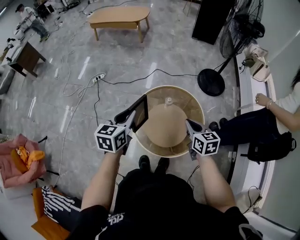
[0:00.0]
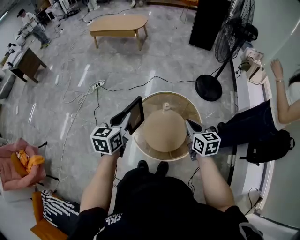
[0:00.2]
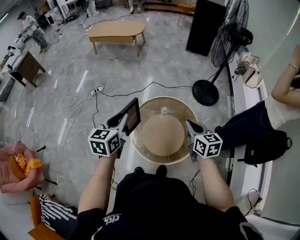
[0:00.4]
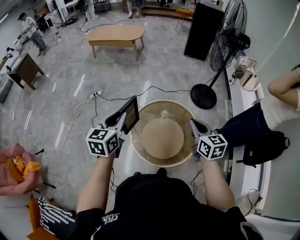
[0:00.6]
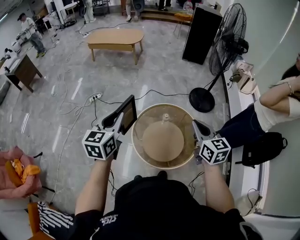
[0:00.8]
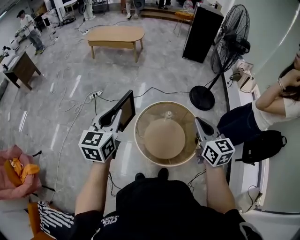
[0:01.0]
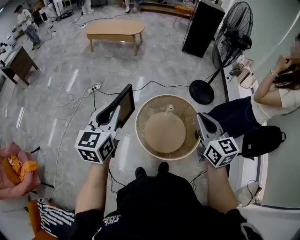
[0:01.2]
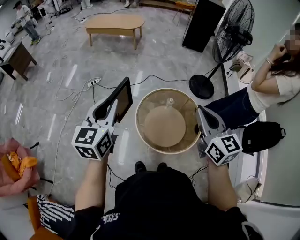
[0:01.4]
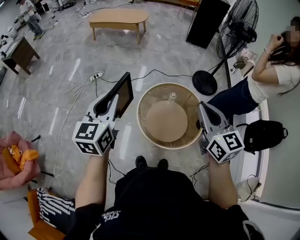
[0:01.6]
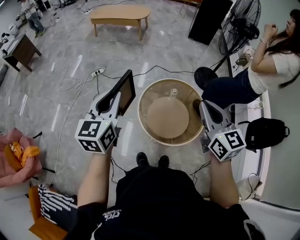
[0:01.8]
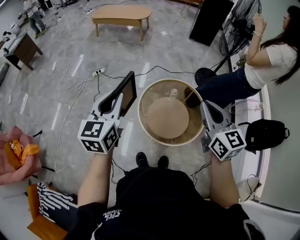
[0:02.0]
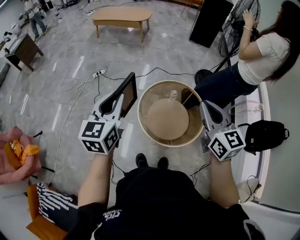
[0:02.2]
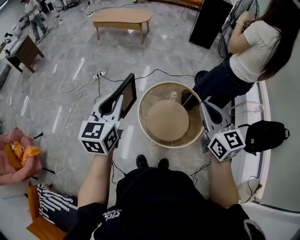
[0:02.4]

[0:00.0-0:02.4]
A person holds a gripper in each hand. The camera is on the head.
0:00.0 to 0:01.2: The grippers both shift upward and to the left by about 20 cm. The right gripper rotates about 20 degrees.
0:01.2 to 0:02.4: The grippers make only small movements.

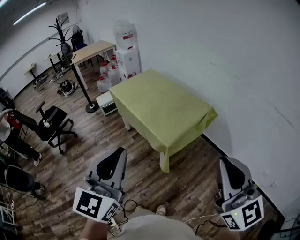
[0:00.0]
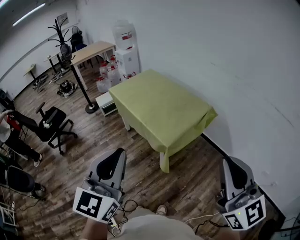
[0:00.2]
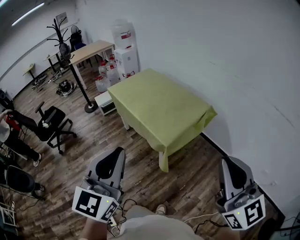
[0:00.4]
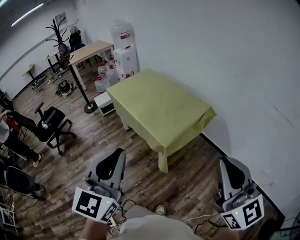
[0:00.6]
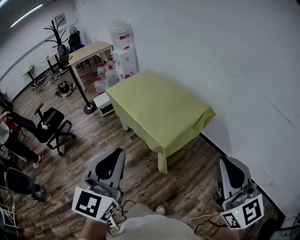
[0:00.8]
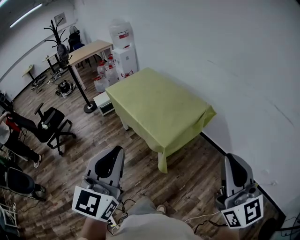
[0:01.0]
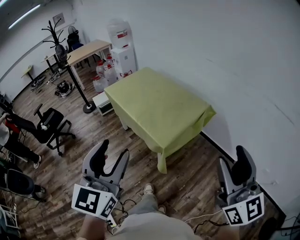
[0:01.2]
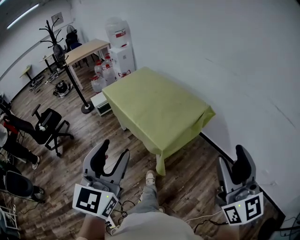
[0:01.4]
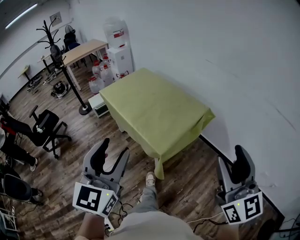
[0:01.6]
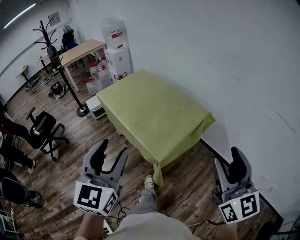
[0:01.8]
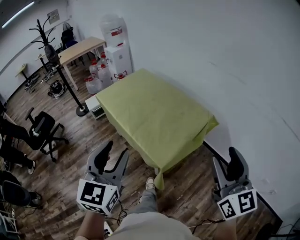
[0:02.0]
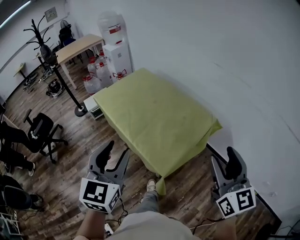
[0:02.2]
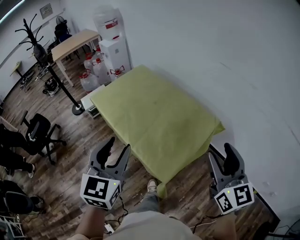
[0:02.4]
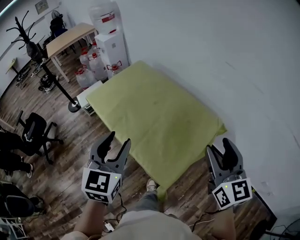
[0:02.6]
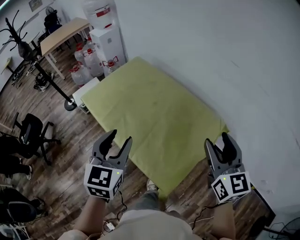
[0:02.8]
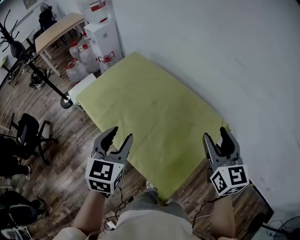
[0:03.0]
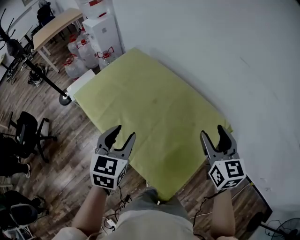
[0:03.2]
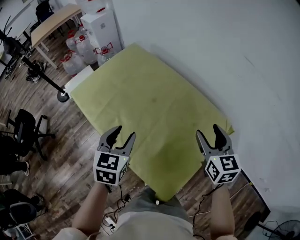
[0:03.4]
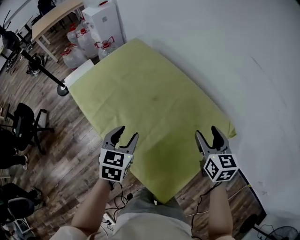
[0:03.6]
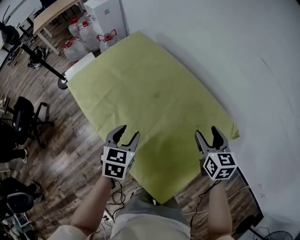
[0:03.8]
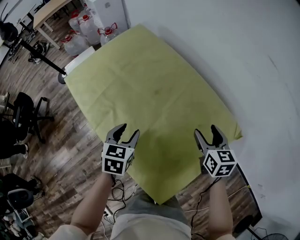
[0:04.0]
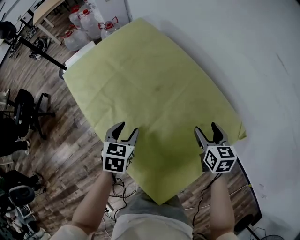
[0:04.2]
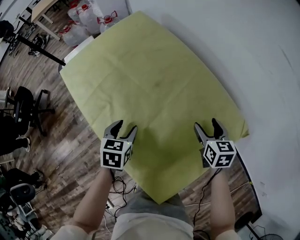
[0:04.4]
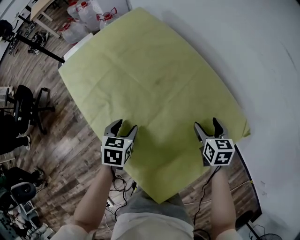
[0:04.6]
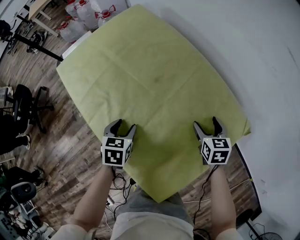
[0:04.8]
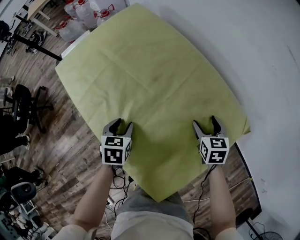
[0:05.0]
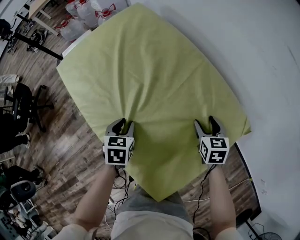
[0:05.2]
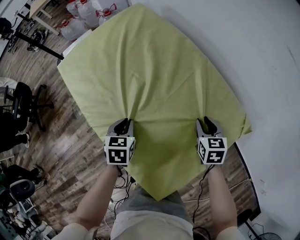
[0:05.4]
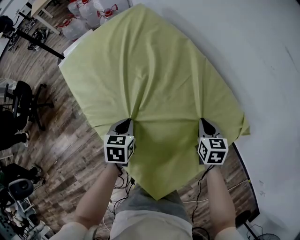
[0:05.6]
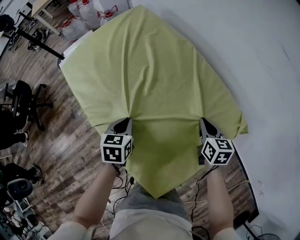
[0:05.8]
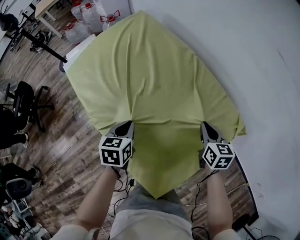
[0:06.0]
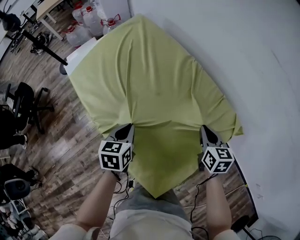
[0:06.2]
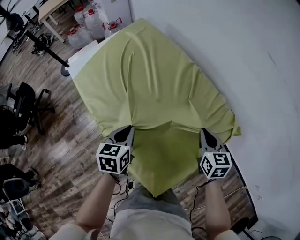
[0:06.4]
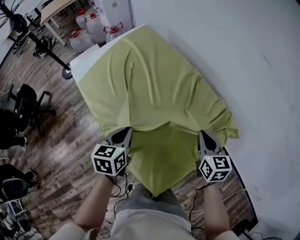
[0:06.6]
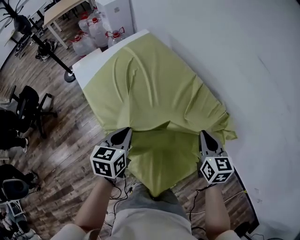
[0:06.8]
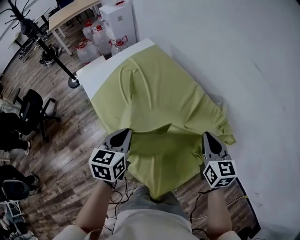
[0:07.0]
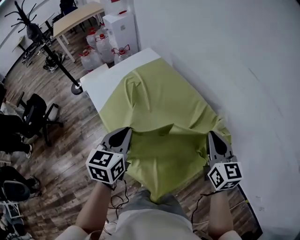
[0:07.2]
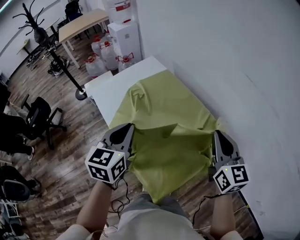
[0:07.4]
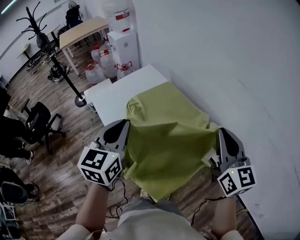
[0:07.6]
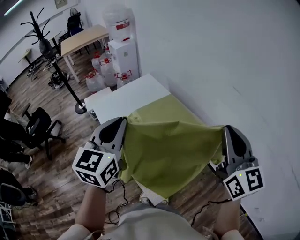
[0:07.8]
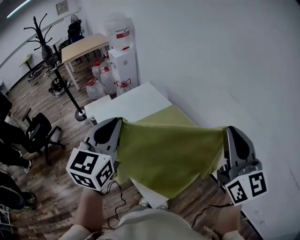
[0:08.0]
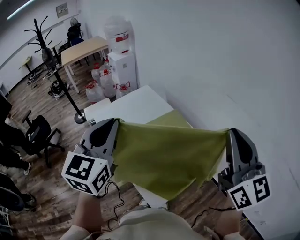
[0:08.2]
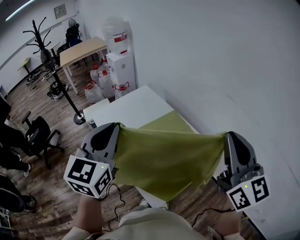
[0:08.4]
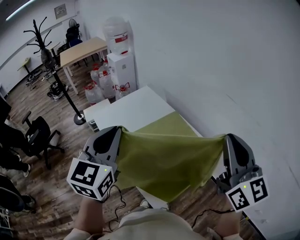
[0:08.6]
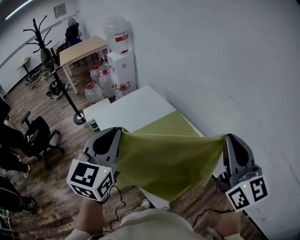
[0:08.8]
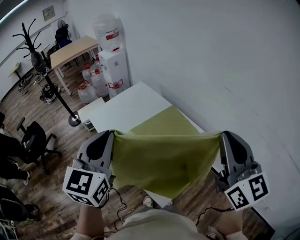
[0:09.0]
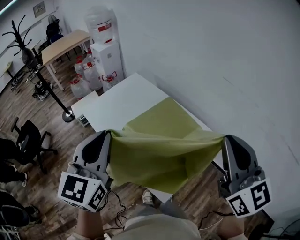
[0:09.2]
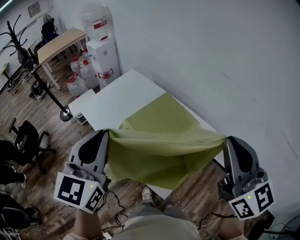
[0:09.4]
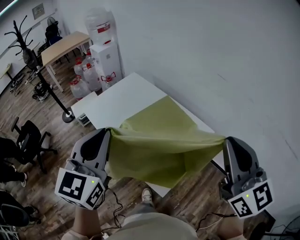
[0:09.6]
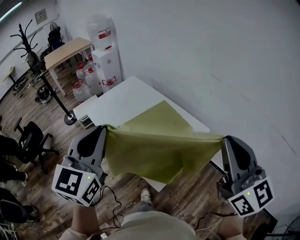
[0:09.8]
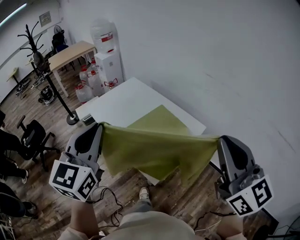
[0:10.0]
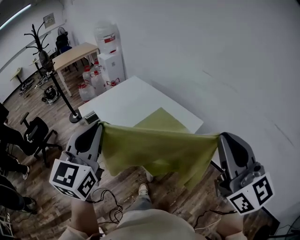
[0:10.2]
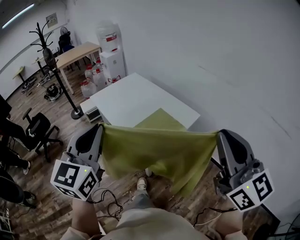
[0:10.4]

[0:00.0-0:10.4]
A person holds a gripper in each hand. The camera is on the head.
0:00.0 to 0:01.4: The left gripper is displaced forward by roughly 5 cm, and opens up, while the right gripper heads to the right and forward, covering about 10 cm, and opens.
0:01.4 to 0:03.0: Both grippers are carried forward, about 50 cm. The right gripper turns by approximately 20 degrees. The left gripper turns by approximately 30 degrees.
0:03.0 to 0:04.4: The right gripper goes roughly 35 cm downward and forward, and changes its angle by about 30 degrees, while the left gripper goes approximately 30 cm downward, and swivels approximately 30 degrees.
0:04.4 to 0:06.0: The right gripper closes up; the left gripper closes.
0:06.0 to 0:07.4: Both grippers move upward, some 30 cm. The left gripper changes its angle by about 30 degrees. The right gripper swivels approximately 30 degrees.
0:07.4 to 0:09.0: The two grippers go some 20 cm upward and backward.
0:09.0 to 0:10.4: Both grippers move backward, about 35 cm.

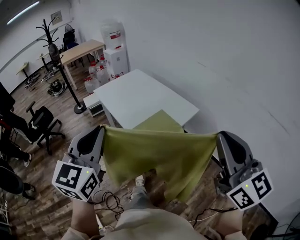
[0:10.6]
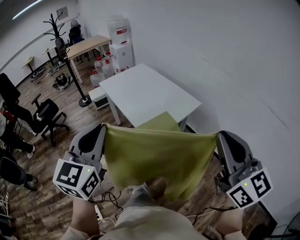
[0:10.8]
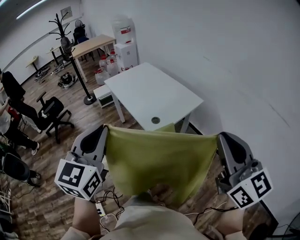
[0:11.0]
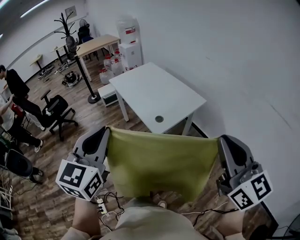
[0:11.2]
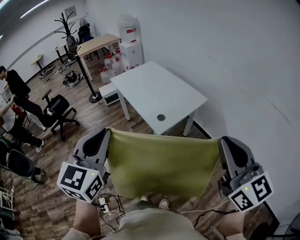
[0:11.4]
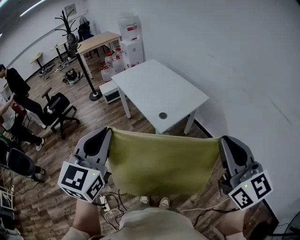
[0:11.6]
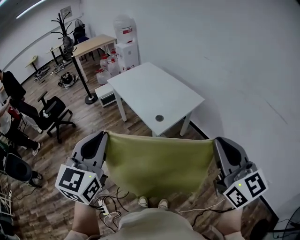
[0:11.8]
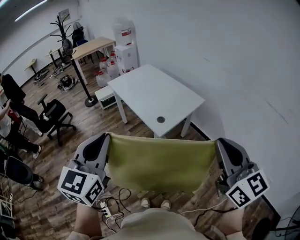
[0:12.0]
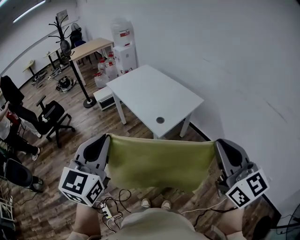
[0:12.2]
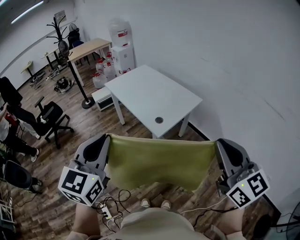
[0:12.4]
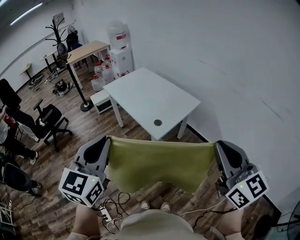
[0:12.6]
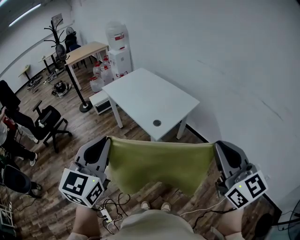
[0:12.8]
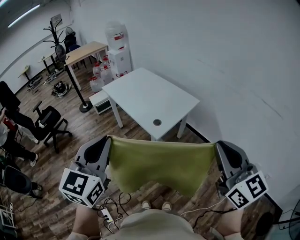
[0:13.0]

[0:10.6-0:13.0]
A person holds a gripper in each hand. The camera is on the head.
0:10.6 to 0:11.8: The two grippers go roughly 15 cm backward and to the left.
0:11.8 to 0:13.0: The grippers stay close to where they were, moving slightly.

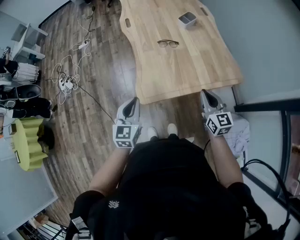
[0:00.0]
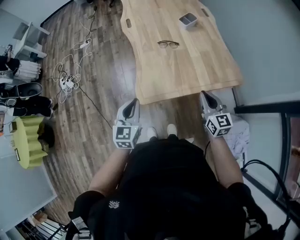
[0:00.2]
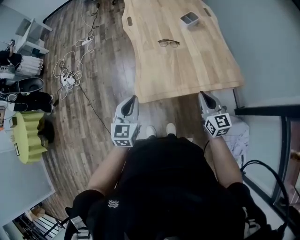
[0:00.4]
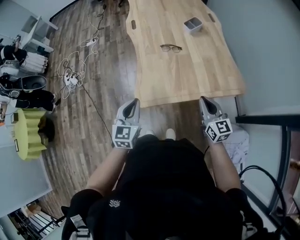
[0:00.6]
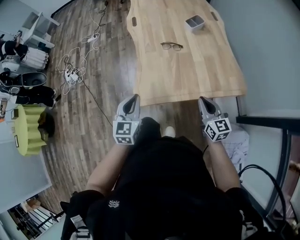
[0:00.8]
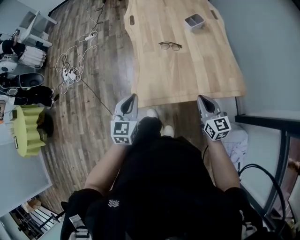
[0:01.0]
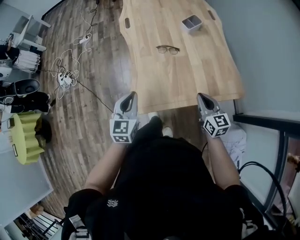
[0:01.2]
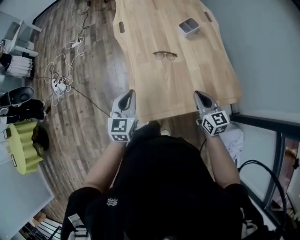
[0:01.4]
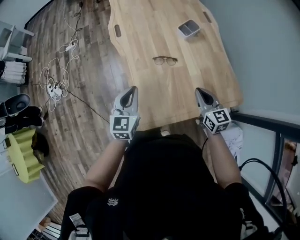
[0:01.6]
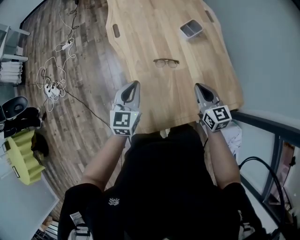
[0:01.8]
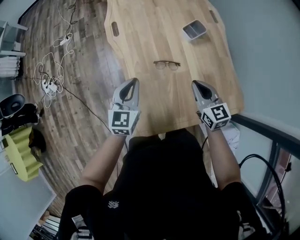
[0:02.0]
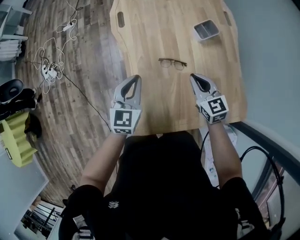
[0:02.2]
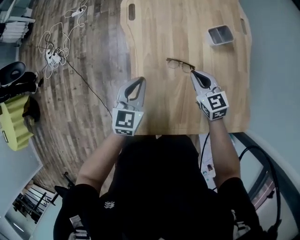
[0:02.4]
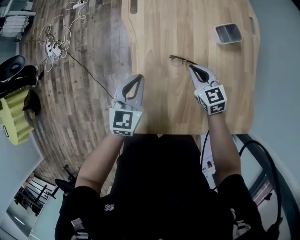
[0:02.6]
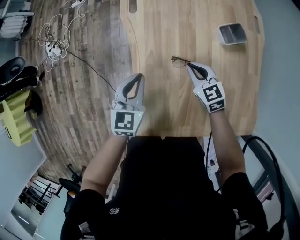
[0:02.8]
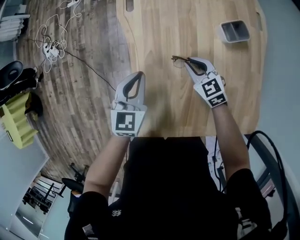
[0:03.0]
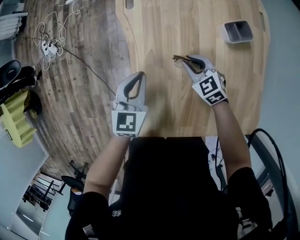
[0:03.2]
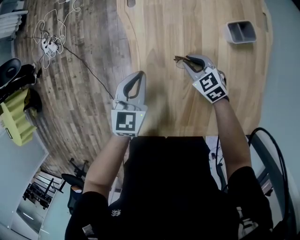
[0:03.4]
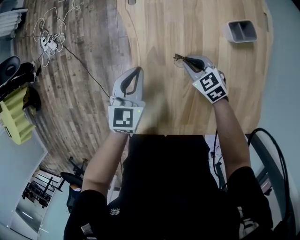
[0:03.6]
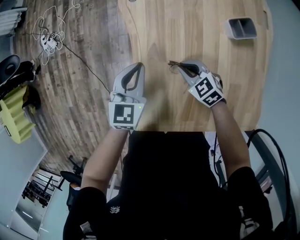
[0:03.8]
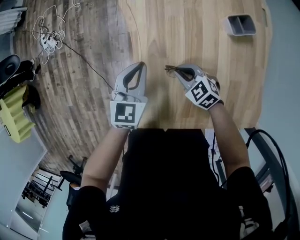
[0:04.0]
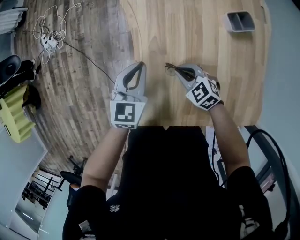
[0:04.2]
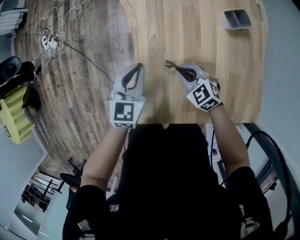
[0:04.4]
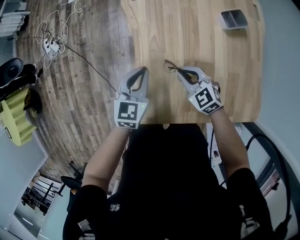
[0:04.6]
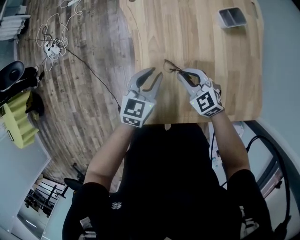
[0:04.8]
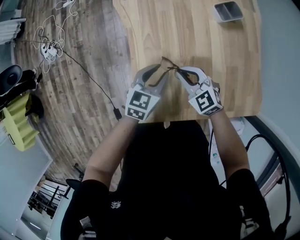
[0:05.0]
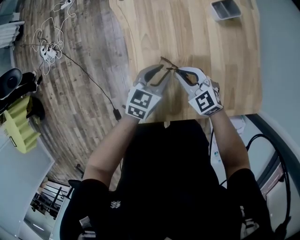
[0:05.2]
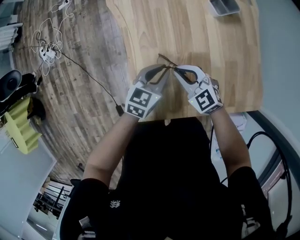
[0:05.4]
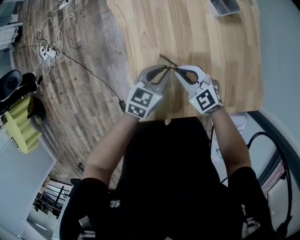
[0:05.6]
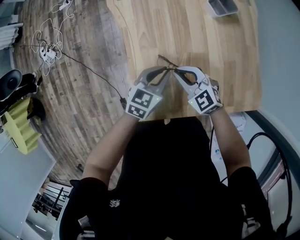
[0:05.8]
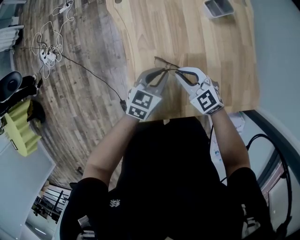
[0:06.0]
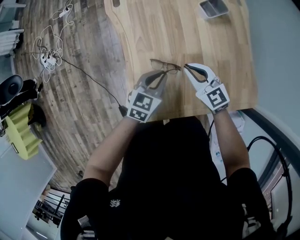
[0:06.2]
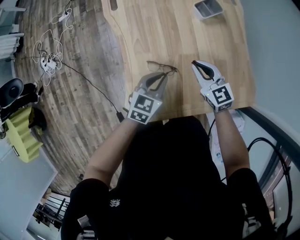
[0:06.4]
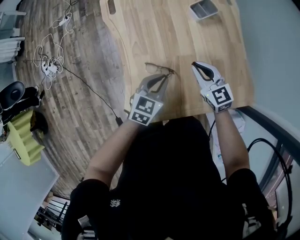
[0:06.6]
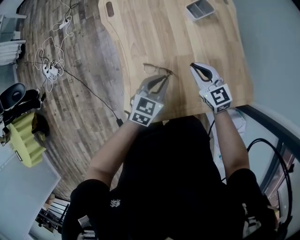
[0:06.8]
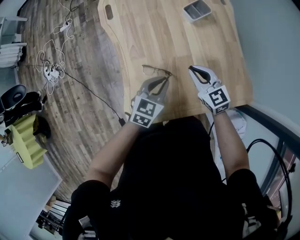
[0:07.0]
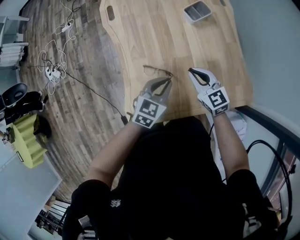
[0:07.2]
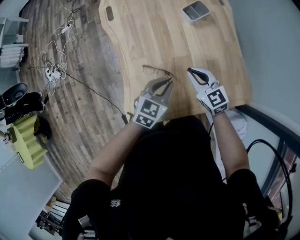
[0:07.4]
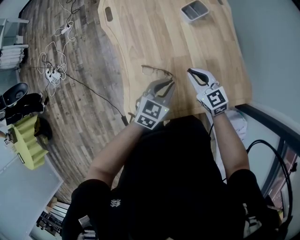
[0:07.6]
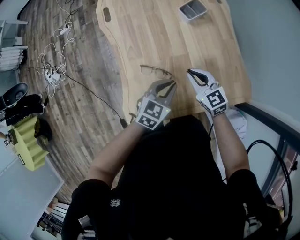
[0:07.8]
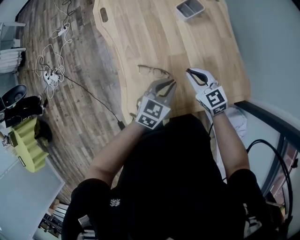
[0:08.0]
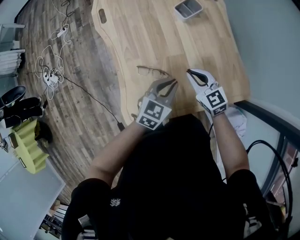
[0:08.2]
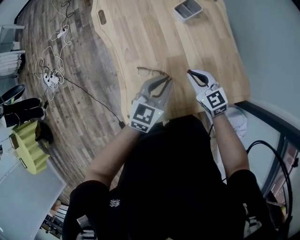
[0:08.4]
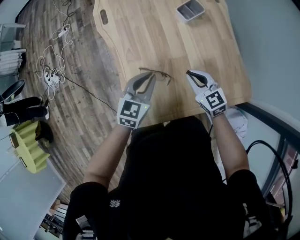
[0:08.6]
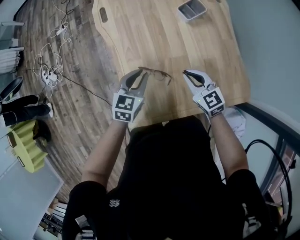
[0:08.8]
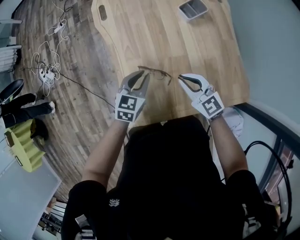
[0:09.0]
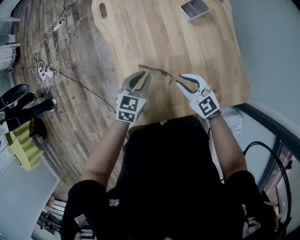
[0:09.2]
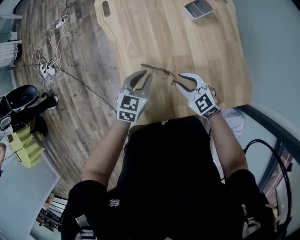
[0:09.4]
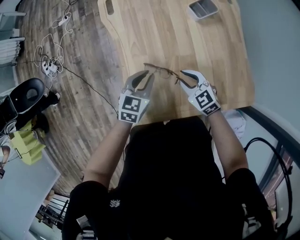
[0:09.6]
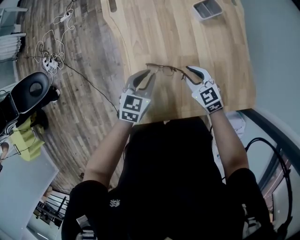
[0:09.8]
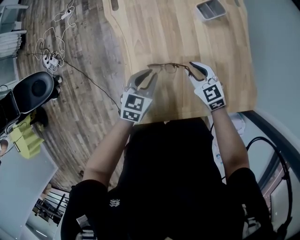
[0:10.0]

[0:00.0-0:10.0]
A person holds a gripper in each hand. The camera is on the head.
0:00.0 to 0:01.4: Both grippers travel together forward, about 15 cm.
0:01.4 to 0:02.8: Both grippers travel together forward and downward, approximately 30 cm. The right gripper swivels approximately 30 degrees.
0:02.8 to 0:04.2: The right gripper travels to the left and backward by roughly 10 cm, and swivels about 20 degrees.
0:04.2 to 0:05.8: The left gripper heads to the right and backward, covering approximately 15 cm, and rotates roughly 30 degrees. The right gripper travels upward by some 5 cm.
0:05.8 to 0:07.2: The right gripper is displaced to the right and upward by some 15 cm, and changes its angle by roughly 30 degrees. Meanwhile the left gripper travels to the right and upward by approximately 10 cm.
0:07.2 to 0:08.6: The left gripper changes place by some 5 cm.
0:08.6 to 0:10.0: The two grippers go some 5 cm downward.
